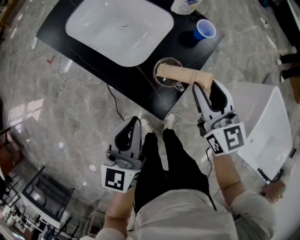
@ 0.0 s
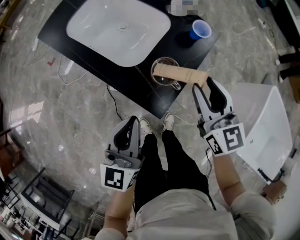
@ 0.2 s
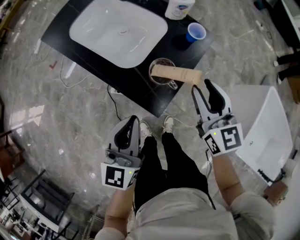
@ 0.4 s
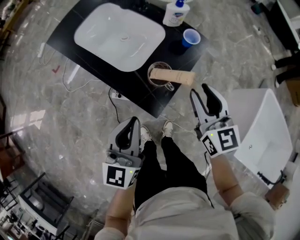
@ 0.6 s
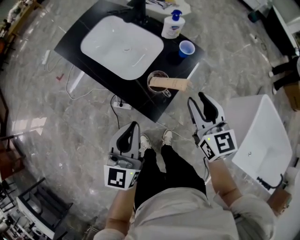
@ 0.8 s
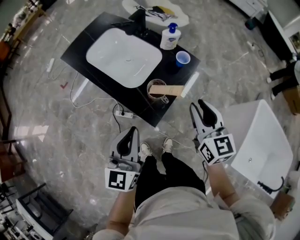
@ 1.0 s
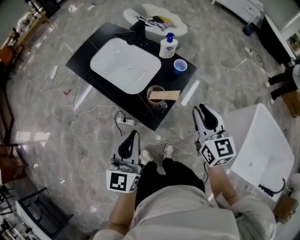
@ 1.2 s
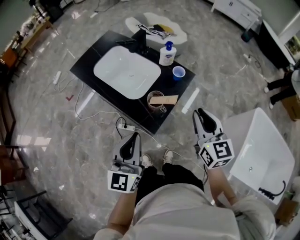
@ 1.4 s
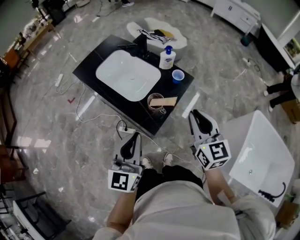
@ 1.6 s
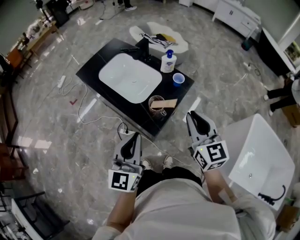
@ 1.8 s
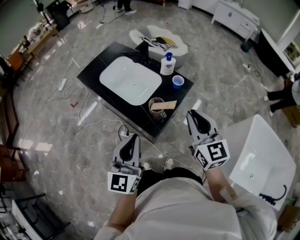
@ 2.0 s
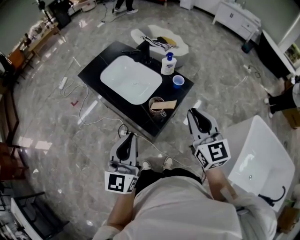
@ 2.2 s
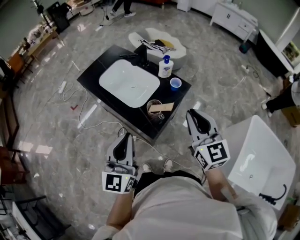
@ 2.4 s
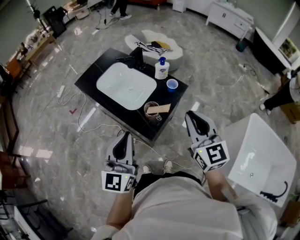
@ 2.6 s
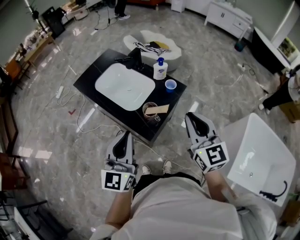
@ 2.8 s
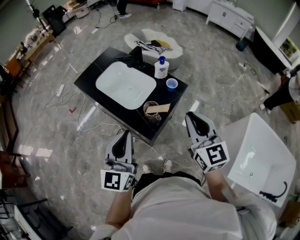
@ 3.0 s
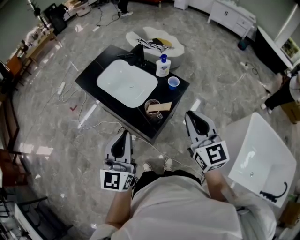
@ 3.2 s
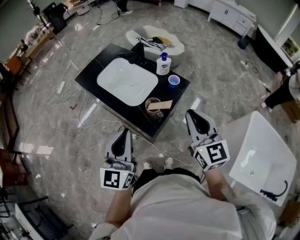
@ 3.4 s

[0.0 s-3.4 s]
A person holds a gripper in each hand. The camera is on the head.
0.0 to 1.6 s: Both grippers move upward and backward, about 15 cm. The right gripper closes up.
1.6 to 3.4 s: The grippers both shift upward by about 5 cm.

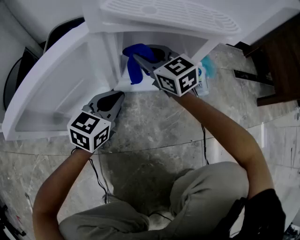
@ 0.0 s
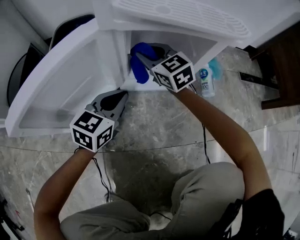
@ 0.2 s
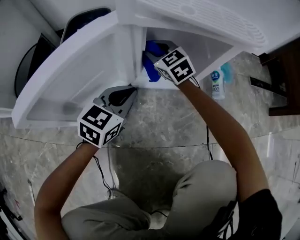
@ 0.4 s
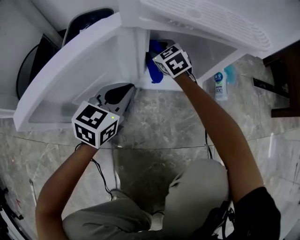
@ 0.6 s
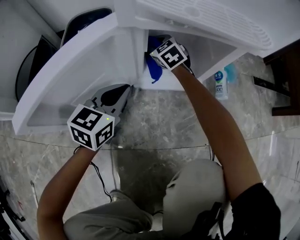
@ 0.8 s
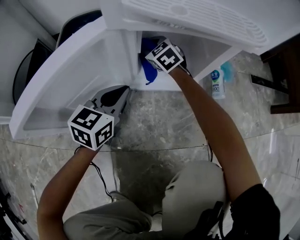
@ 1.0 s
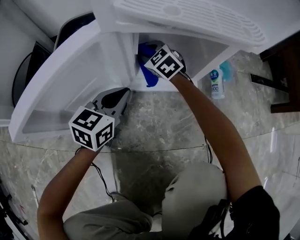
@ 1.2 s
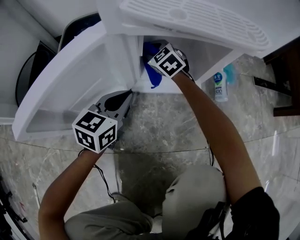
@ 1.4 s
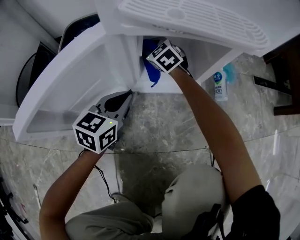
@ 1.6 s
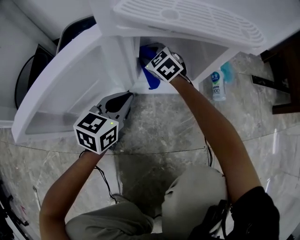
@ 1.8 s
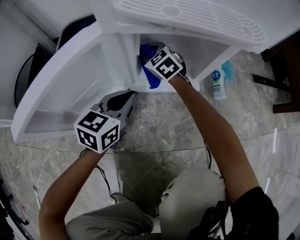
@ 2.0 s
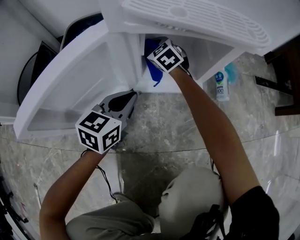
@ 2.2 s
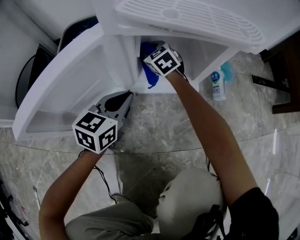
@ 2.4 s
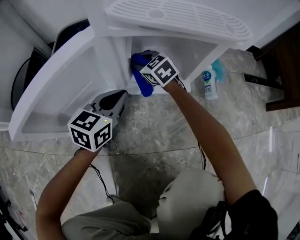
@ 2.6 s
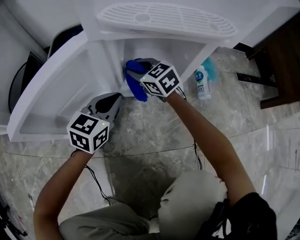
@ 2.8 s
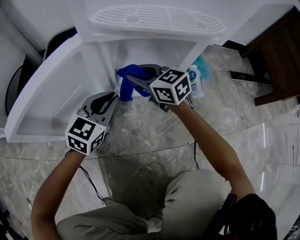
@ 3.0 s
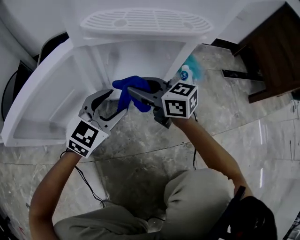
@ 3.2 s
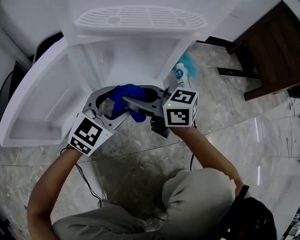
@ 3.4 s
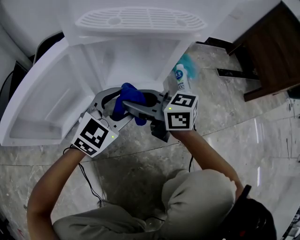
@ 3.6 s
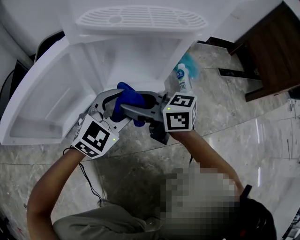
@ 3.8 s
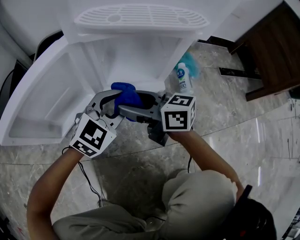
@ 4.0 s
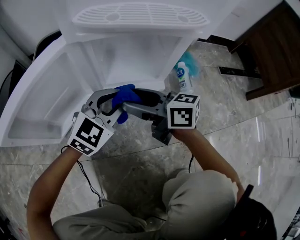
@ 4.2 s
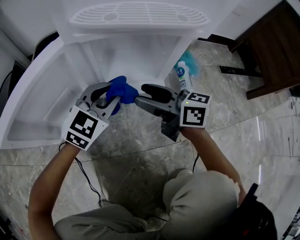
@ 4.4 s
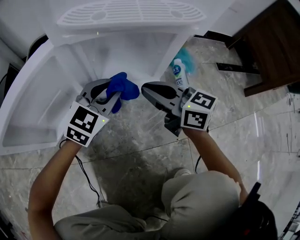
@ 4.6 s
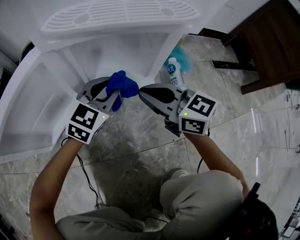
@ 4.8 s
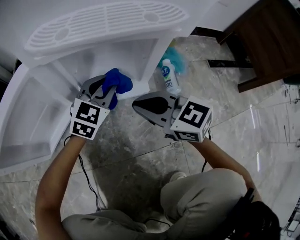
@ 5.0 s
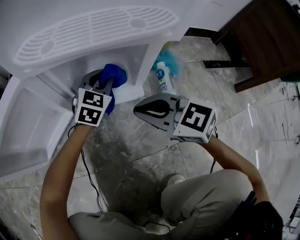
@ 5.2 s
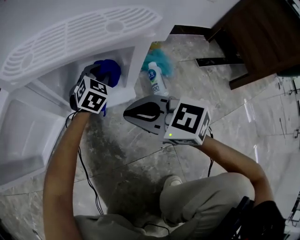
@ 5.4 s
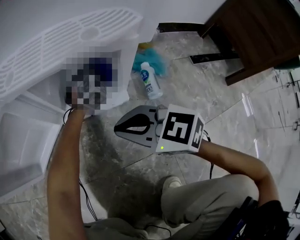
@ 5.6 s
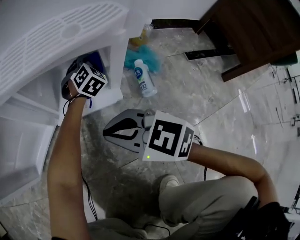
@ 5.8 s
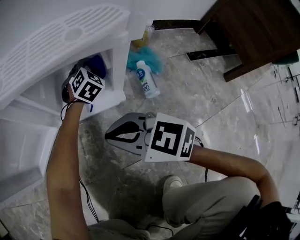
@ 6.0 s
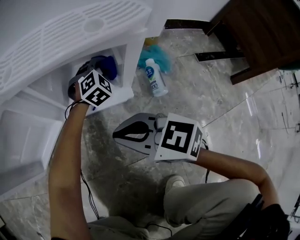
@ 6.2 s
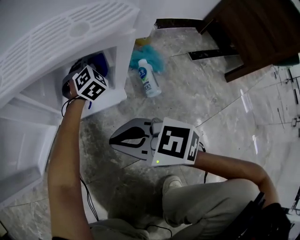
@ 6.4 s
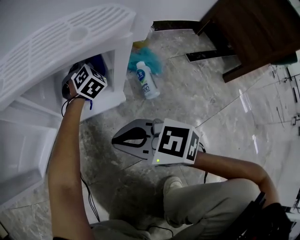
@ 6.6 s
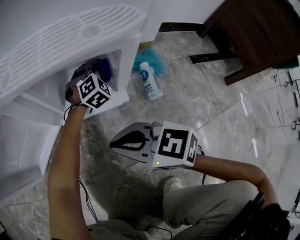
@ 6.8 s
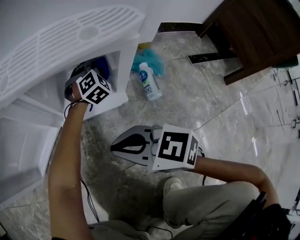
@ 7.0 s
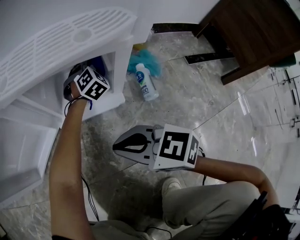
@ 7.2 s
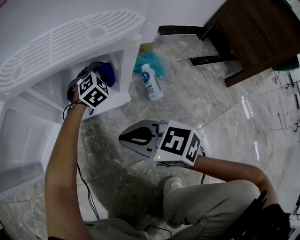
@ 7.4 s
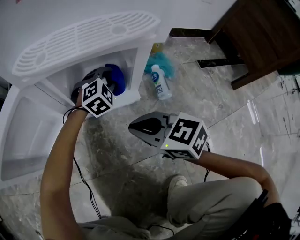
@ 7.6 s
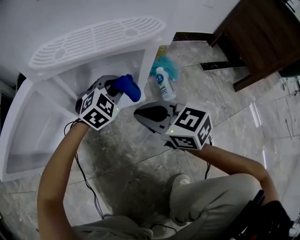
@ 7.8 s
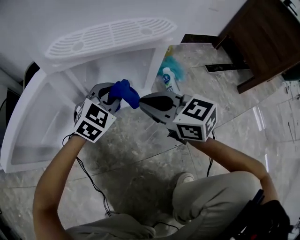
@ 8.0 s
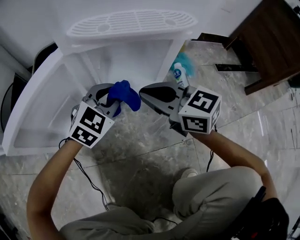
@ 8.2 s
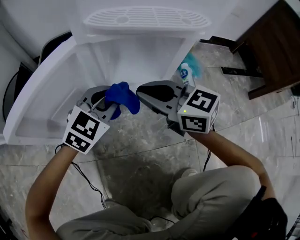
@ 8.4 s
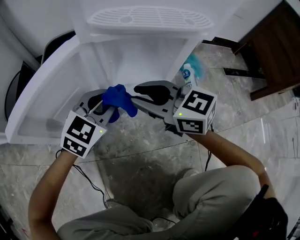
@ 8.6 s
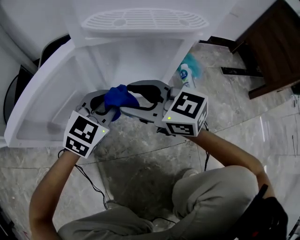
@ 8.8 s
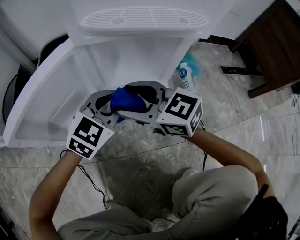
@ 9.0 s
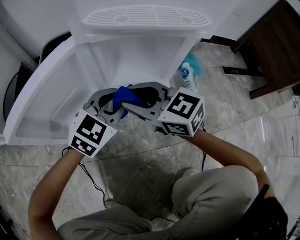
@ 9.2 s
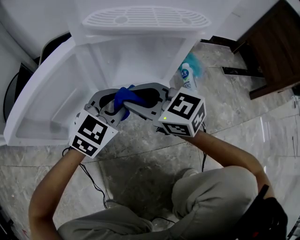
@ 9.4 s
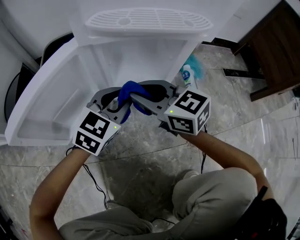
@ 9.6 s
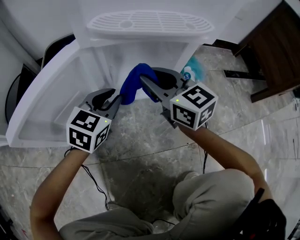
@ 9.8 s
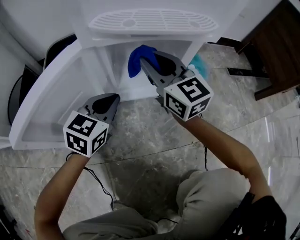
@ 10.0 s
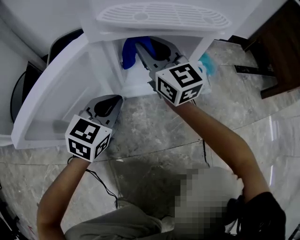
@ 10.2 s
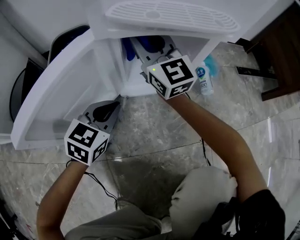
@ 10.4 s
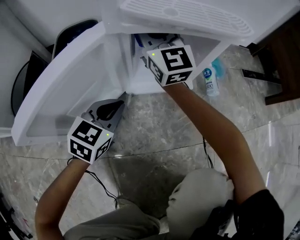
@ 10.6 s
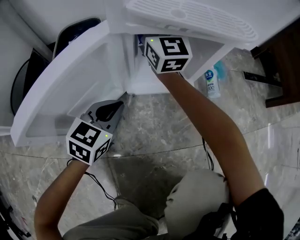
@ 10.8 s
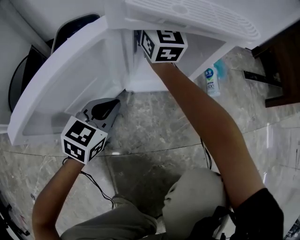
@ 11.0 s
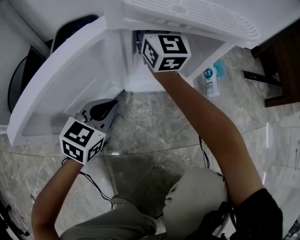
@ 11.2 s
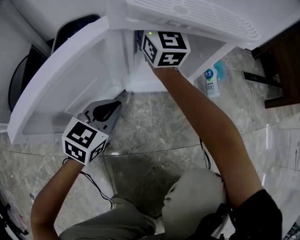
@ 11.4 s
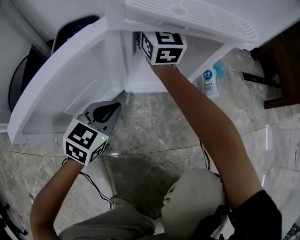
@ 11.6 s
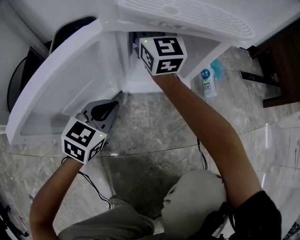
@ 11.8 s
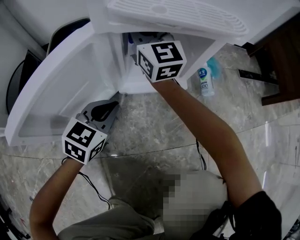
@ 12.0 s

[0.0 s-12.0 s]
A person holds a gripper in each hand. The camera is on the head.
0.0 to 1.6 s: The right gripper shifts approximately 15 cm downward and forward, and swivels roughly 30 degrees.
1.6 to 3.0 s: The right gripper heads backward and upward, covering about 15 cm, and turns by some 30 degrees.
3.0 to 4.4 s: The right gripper shifts some 10 cm backward and to the right, rotates approximately 30 degrees, and opens its fingers. Meanwhile the left gripper shifts approximately 5 cm to the right, and opens, then closes once more.
4.4 to 6.0 s: The right gripper travels backward by approximately 5 cm, changes its angle by about 40 degrees, and closes, while the left gripper goes some 30 cm forward, to the right and downward, and swivels roughly 30 degrees.
6.0 to 7.6 s: The left gripper is displaced backward by approximately 5 cm.
7.6 to 9.0 s: The left gripper moves backward, to the left and upward, roughly 25 cm, and turns by approximately 30 degrees, while the right gripper heads to the left and upward, covering about 15 cm, and opens.
9.0 to 10.4 s: The right gripper moves forward, roughly 15 cm, swivels roughly 40 degrees, and closes. Meanwhile the left gripper moves to the left, approximately 10 cm.

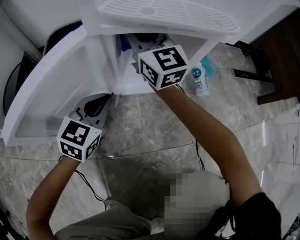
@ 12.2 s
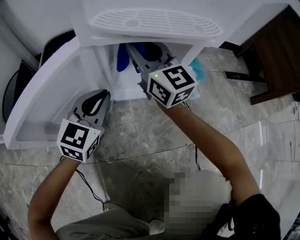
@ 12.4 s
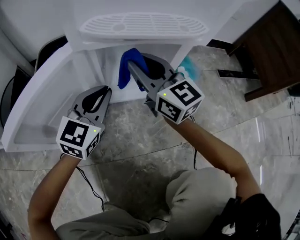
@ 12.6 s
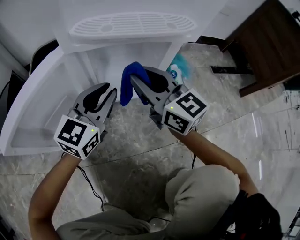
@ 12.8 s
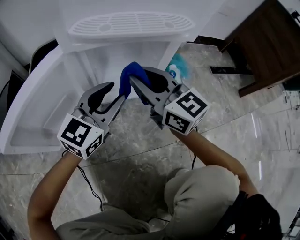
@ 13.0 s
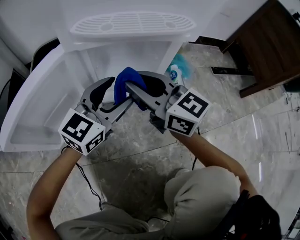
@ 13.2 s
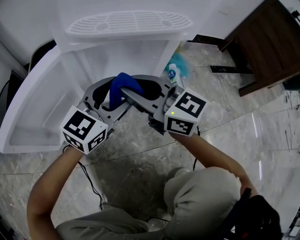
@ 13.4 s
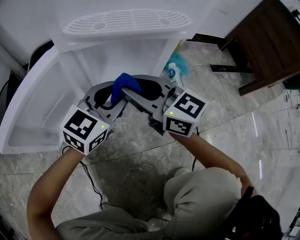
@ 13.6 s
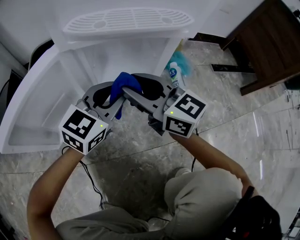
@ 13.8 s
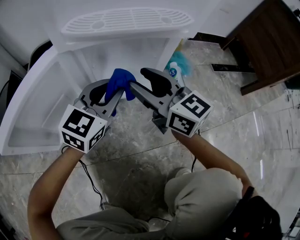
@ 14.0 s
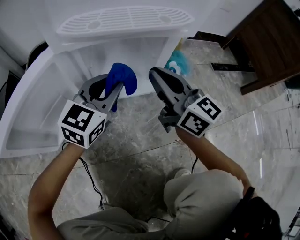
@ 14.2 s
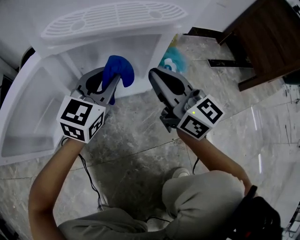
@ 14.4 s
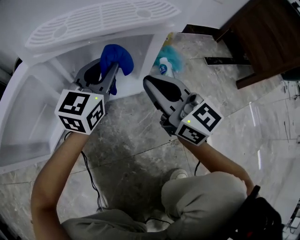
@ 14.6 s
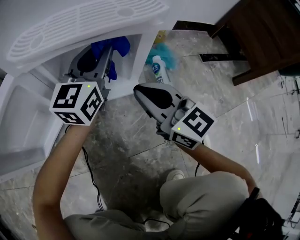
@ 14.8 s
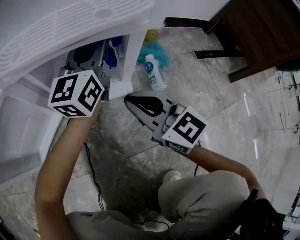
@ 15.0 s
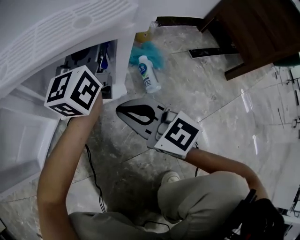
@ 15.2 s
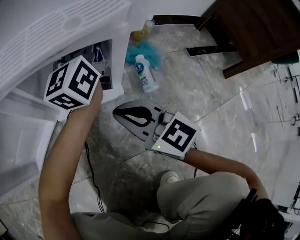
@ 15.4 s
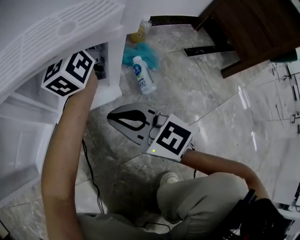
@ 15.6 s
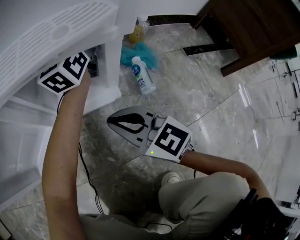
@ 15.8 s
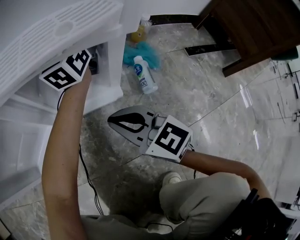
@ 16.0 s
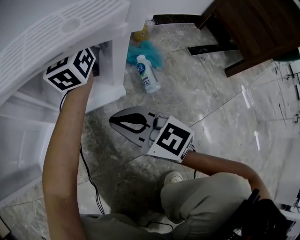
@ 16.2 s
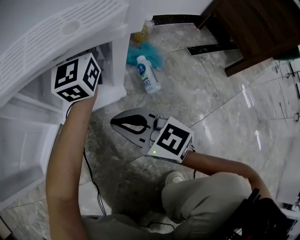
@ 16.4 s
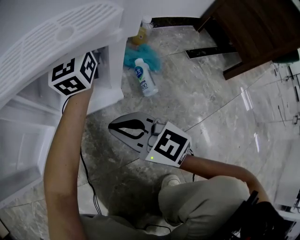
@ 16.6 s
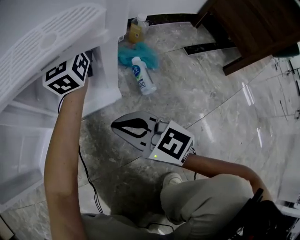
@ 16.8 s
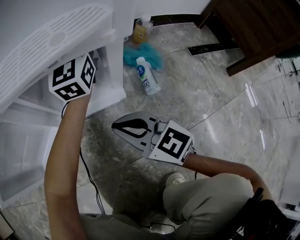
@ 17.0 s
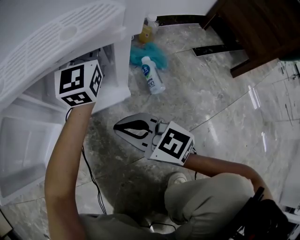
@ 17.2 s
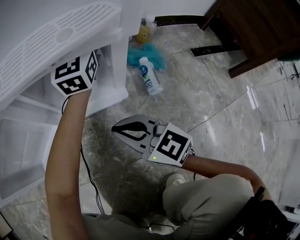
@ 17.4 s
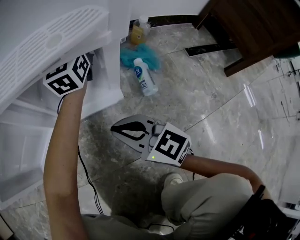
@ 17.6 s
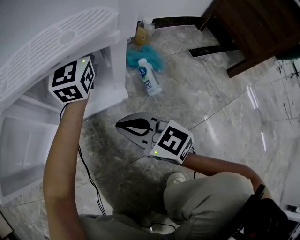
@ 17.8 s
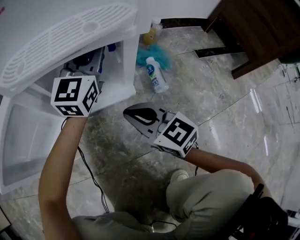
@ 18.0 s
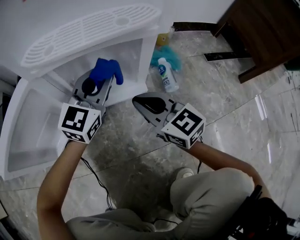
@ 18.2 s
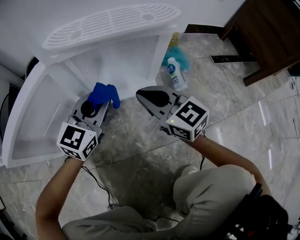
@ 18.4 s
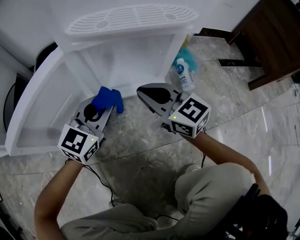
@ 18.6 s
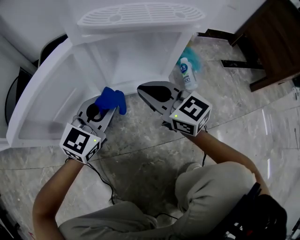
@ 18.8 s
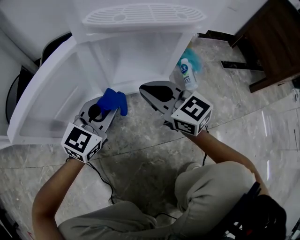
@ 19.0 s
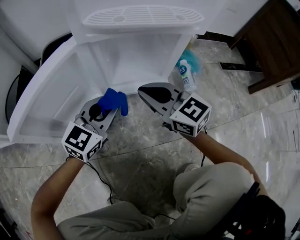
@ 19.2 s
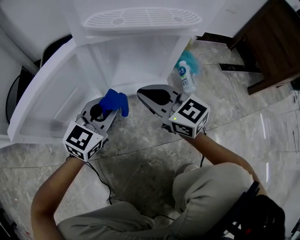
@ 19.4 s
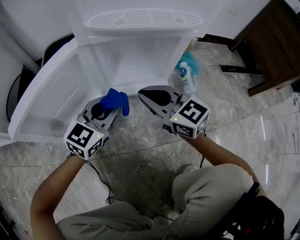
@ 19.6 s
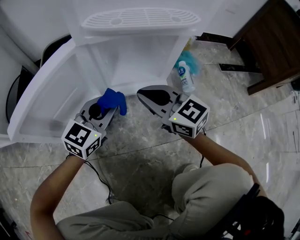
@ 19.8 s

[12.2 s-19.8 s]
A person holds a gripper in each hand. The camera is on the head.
12.2 to 13.8 s: The left gripper travels to the right and upward by roughly 15 cm, and opens, then closes once more, while the right gripper travels backward and to the right by approximately 15 cm, and swivels roughly 30 degrees.
13.8 to 15.2 s: The right gripper heads to the right and downward, covering some 10 cm, and closes its fingers. The left gripper heads forward and to the right, covering roughly 20 cm, and changes its angle by roughly 40 degrees.
15.2 to 16.8 s: The left gripper shifts some 10 cm forward, and changes its angle by about 20 degrees.
16.8 to 18.2 s: The left gripper swings forward and backward, some 15 cm each way, with 2 reversals, and swivels about 30 degrees.
18.2 to 19.8 s: The left gripper goes roughly 15 cm backward and to the left; the right gripper moves to the left, approximately 5 cm.
